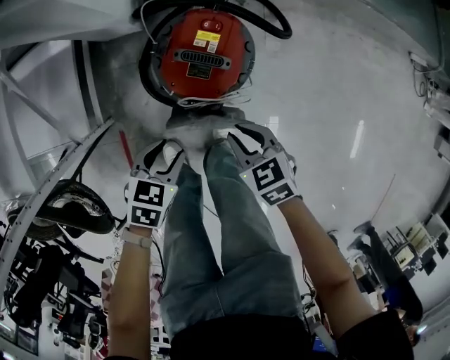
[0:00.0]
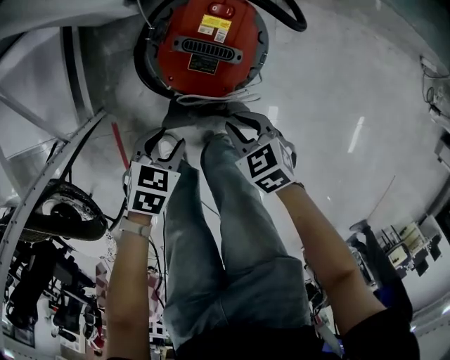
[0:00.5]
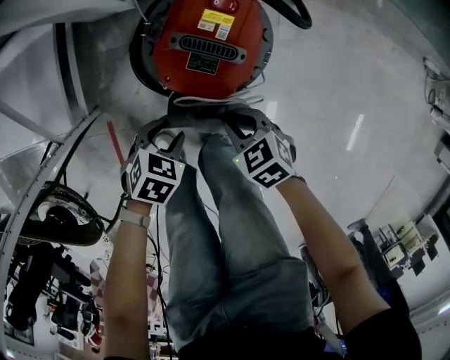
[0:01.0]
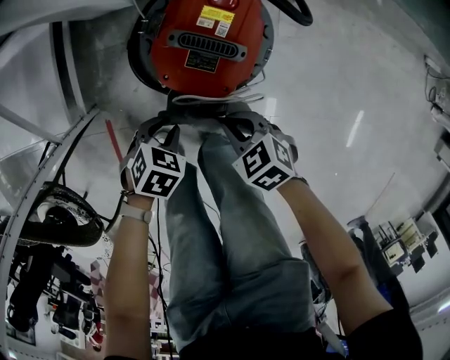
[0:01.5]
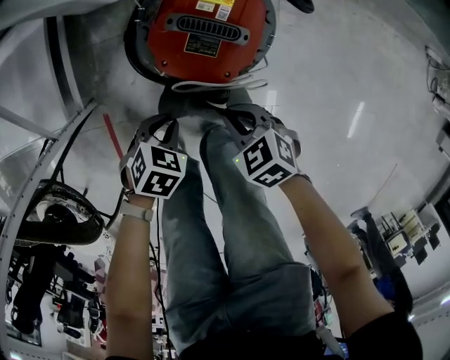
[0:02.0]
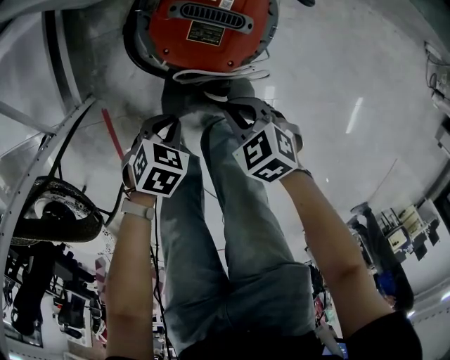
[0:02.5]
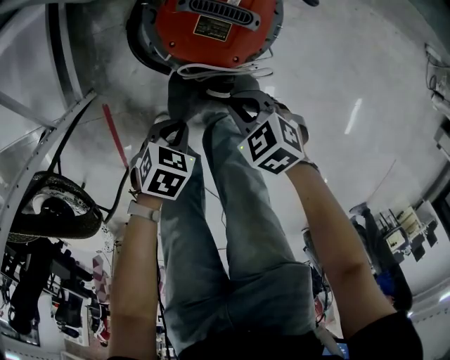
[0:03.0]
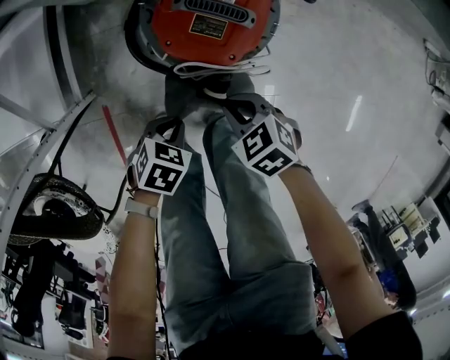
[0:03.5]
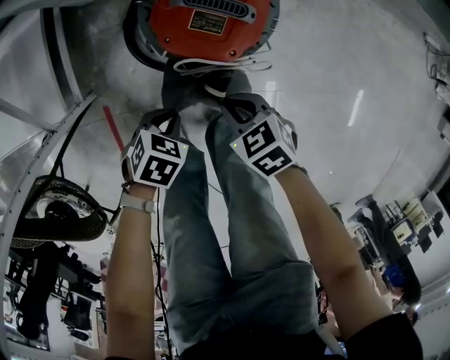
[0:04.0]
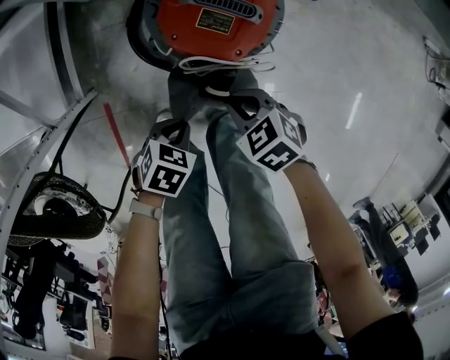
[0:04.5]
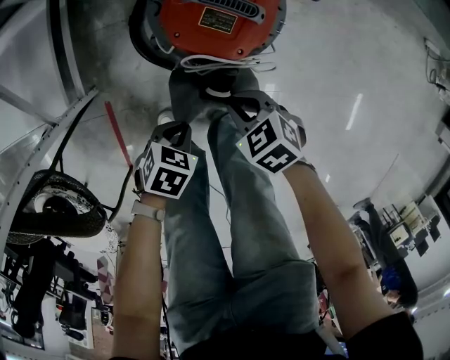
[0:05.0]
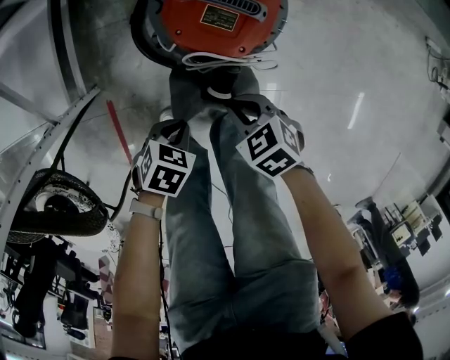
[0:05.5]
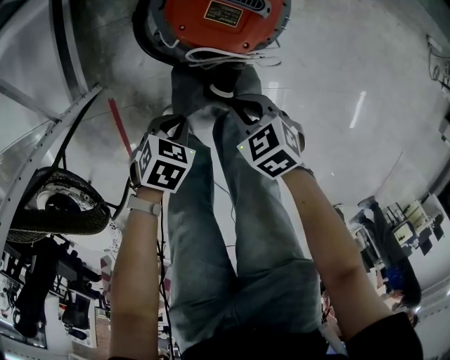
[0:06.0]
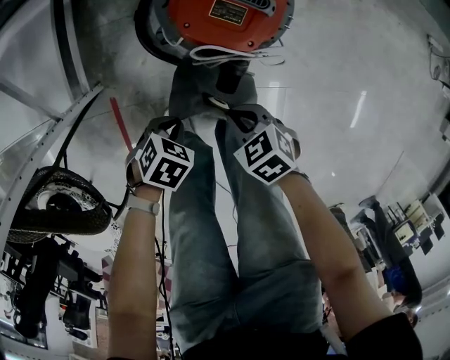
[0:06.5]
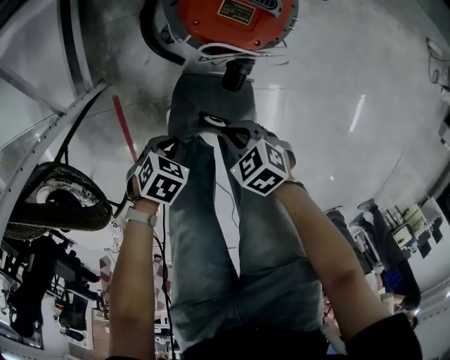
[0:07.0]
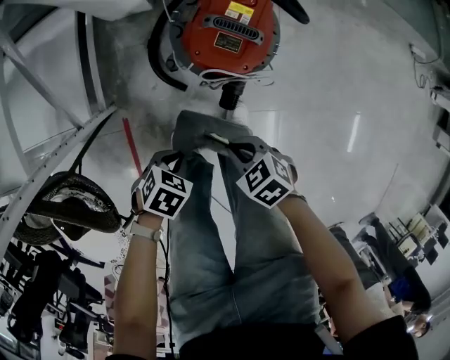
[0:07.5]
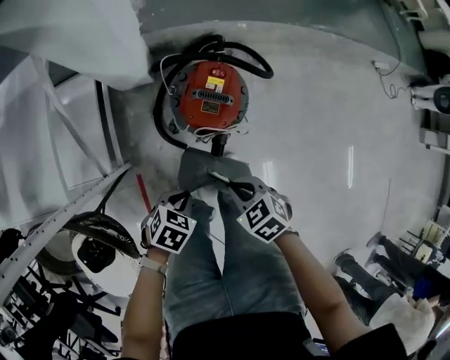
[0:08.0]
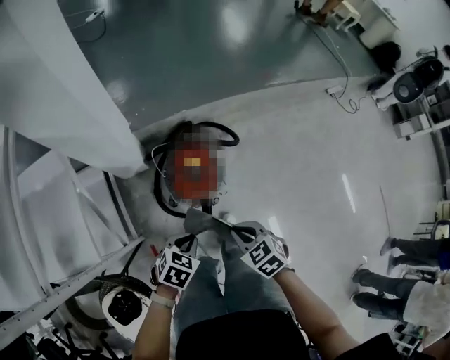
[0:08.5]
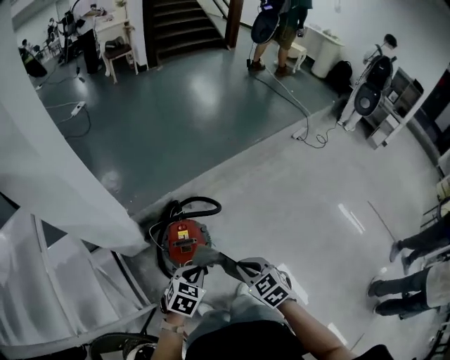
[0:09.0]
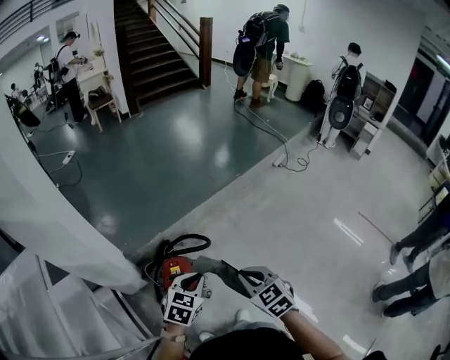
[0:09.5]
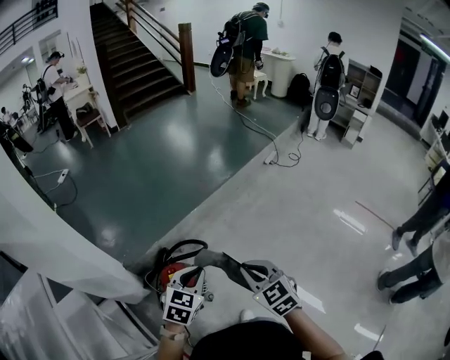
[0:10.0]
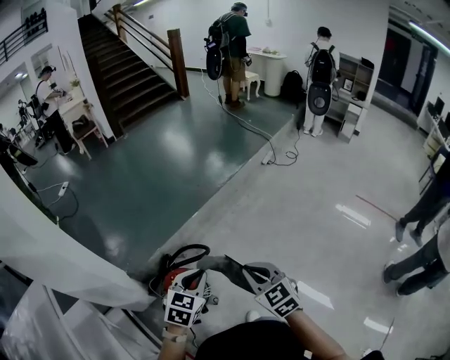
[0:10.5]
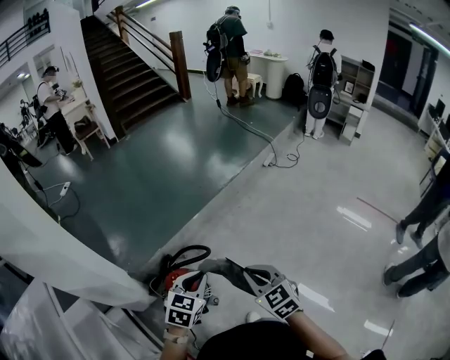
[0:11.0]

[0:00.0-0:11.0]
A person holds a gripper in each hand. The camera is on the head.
0:00.0 to 0:02.0: The grippers both shift downward by approximately 15 cm. The left gripper closes its fingers.
0:02.0 to 0:03.5: The left gripper shifts by approximately 5 cm.
0:03.5 to 0:05.5: The grippers stay close to where they were, moving slightly.
0:05.5 to 0:07.5: The right gripper moves roughly 10 cm; the left gripper goes some 5 cm upward.
0:07.5 to 0:09.0: The two grippers go roughly 50 cm upward. The right gripper turns by approximately 50 degrees, while the left gripper rotates some 40 degrees.
0:09.0 to 0:11.0: The two grippers go about 25 cm upward and to the right. The left gripper swivels approximately 20 degrees. Meanwhile the right gripper turns by roughly 30 degrees.

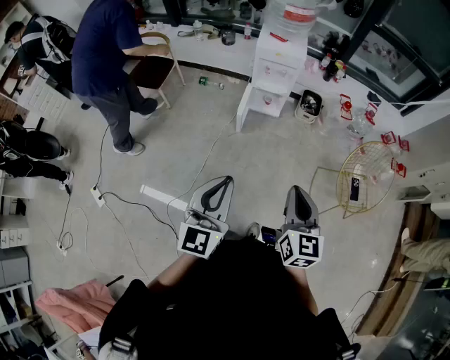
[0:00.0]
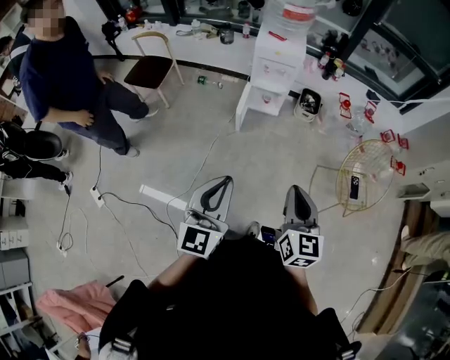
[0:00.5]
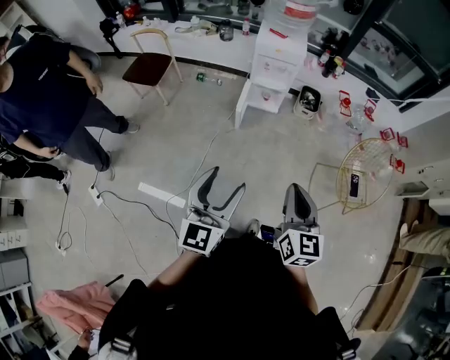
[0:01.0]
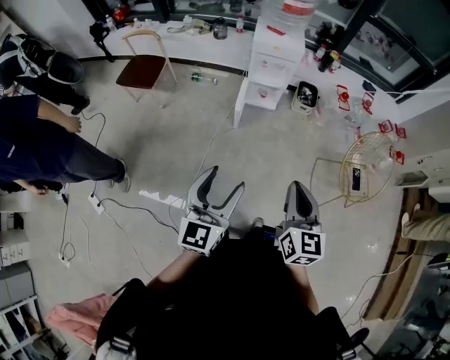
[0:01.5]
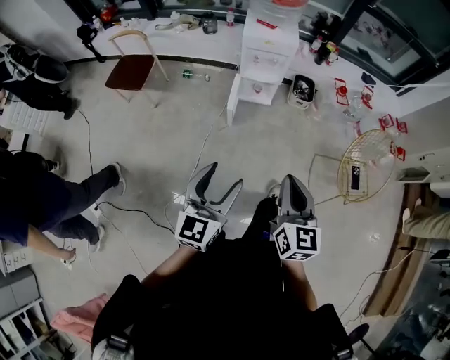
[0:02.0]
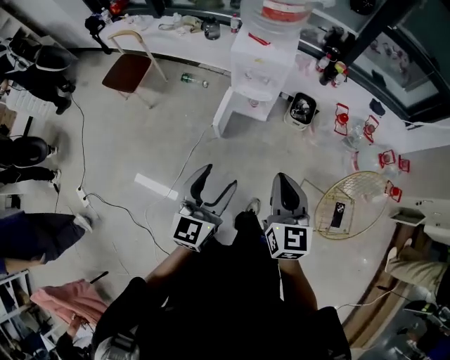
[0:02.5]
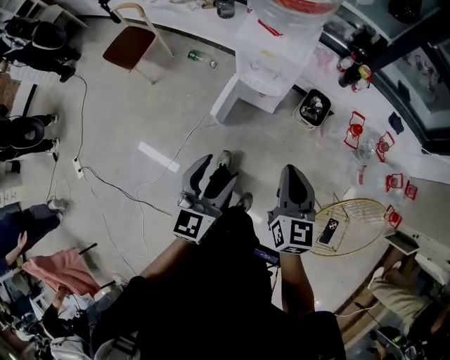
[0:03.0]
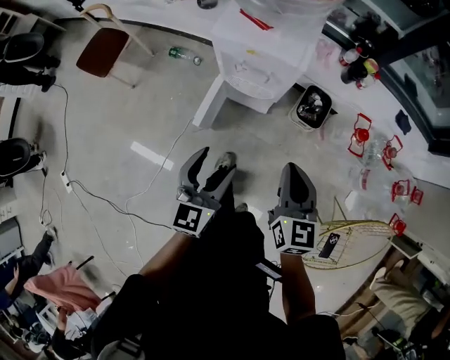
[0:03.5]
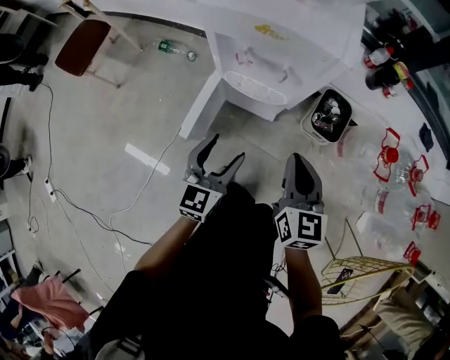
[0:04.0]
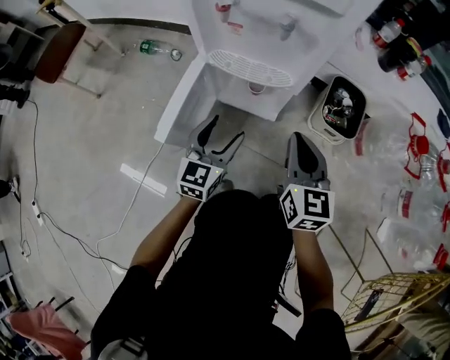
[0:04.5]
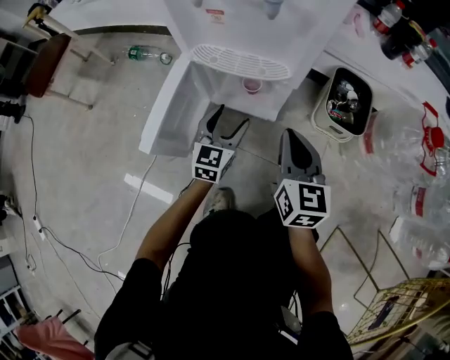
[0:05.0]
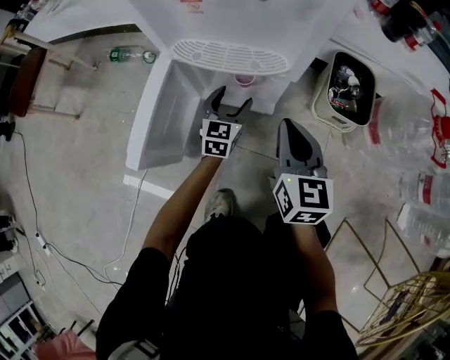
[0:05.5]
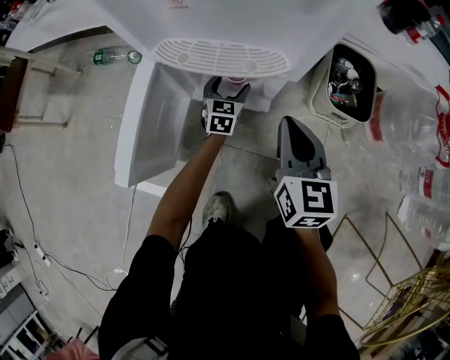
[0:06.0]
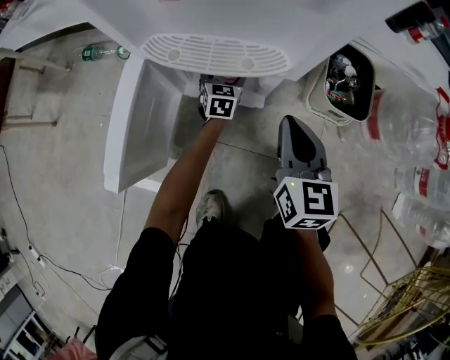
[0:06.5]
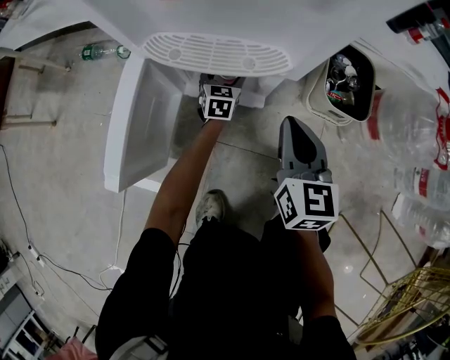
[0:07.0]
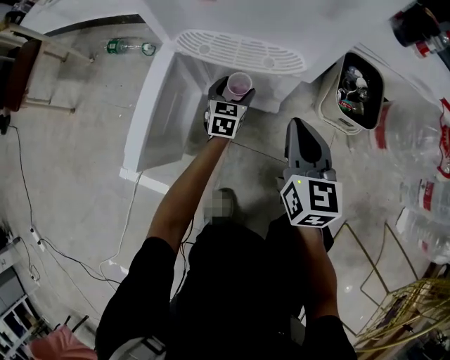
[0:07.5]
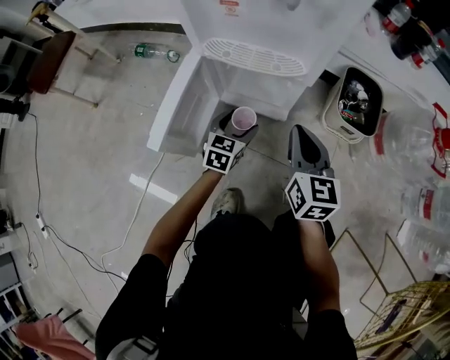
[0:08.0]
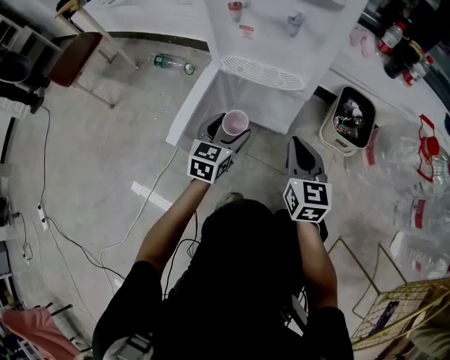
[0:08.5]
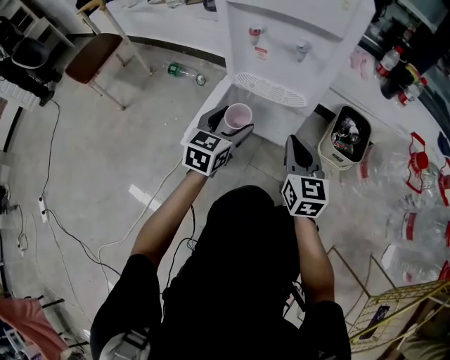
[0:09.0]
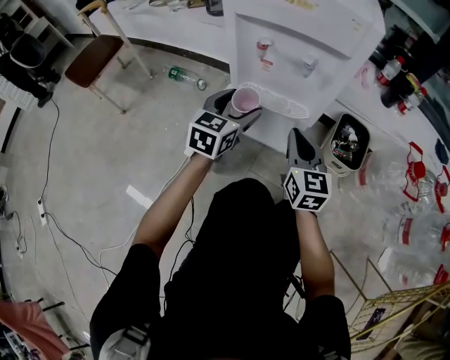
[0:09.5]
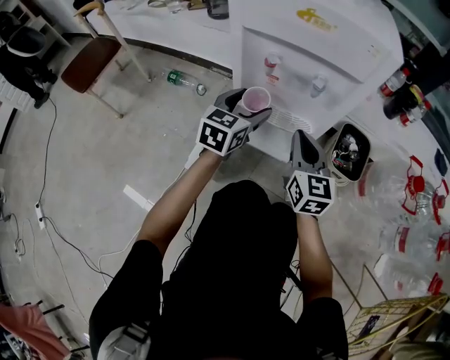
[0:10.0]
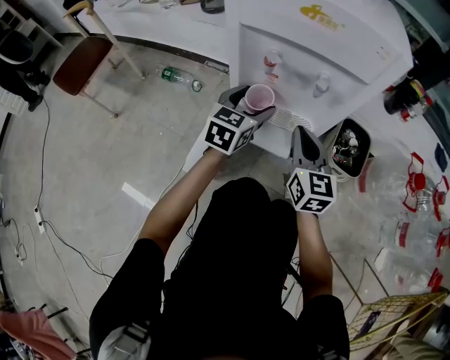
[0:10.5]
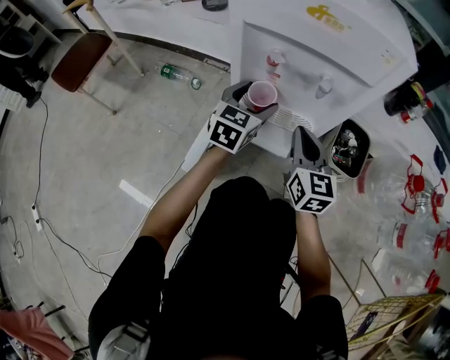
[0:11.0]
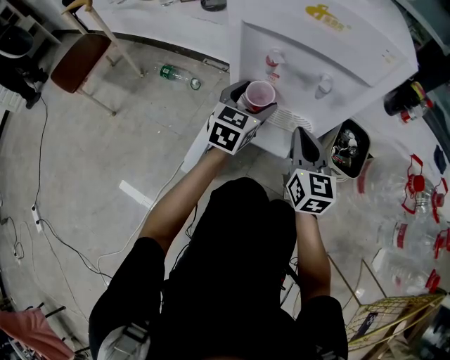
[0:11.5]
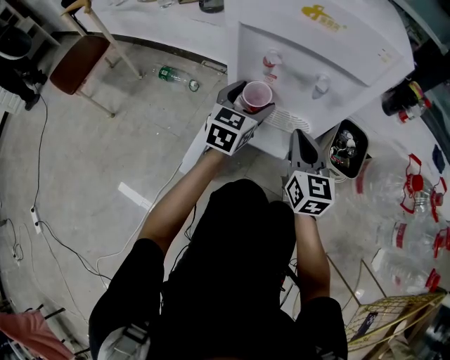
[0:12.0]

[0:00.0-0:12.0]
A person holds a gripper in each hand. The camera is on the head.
0:00.0 to 0:02.0: The left gripper is displaced forward and downward by roughly 10 cm, and opens up. The right gripper moves forward, approximately 10 cm.
0:02.0 to 0:04.0: Both grippers are carried forward, roughly 60 cm. Both grippers move downward, about 50 cm.
0:04.0 to 0:06.0: The right gripper heads downward, covering roughly 30 cm. The left gripper travels downward and forward by roughly 50 cm.
0:06.0 to 0:08.0: The left gripper travels backward and upward by about 15 cm.
0:08.0 to 0:10.0: The left gripper shifts approximately 30 cm upward; the right gripper shifts approximately 15 cm upward, to the left and forward.
0:10.0 to 0:12.0: The grippers stay close to where they were, moving slightly.

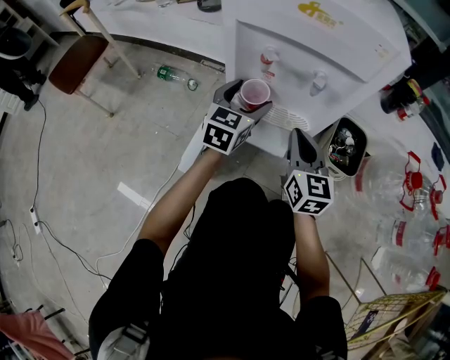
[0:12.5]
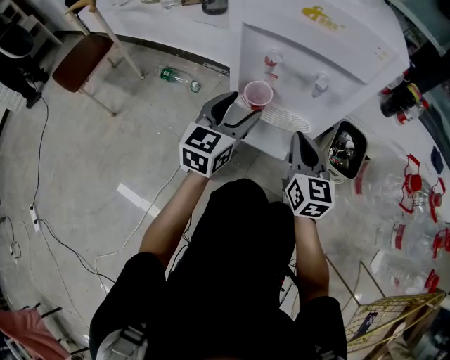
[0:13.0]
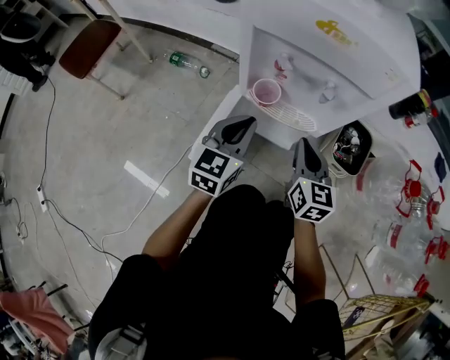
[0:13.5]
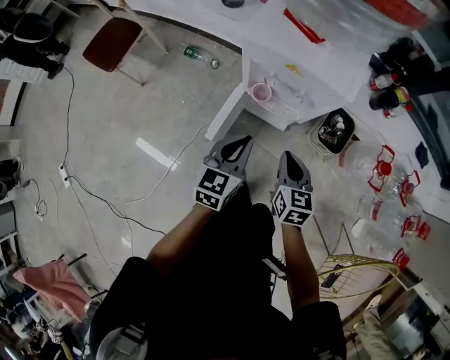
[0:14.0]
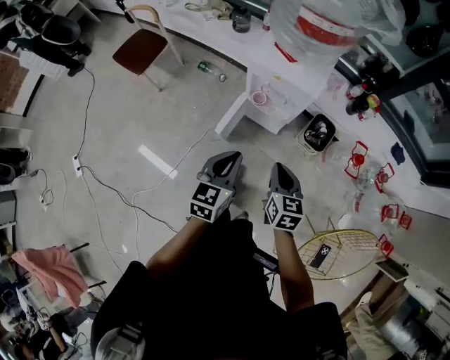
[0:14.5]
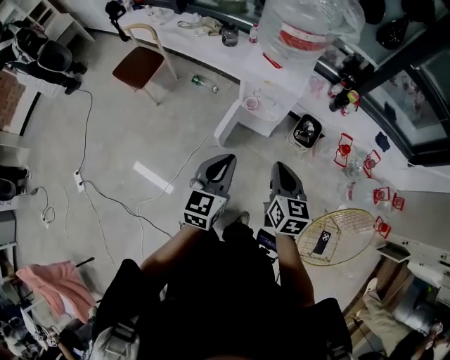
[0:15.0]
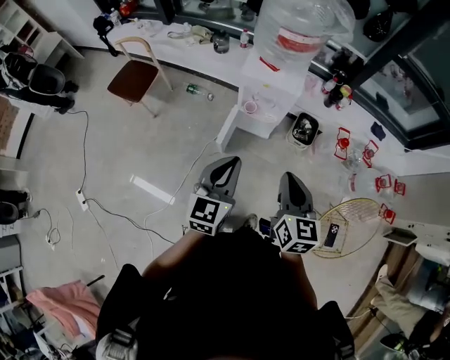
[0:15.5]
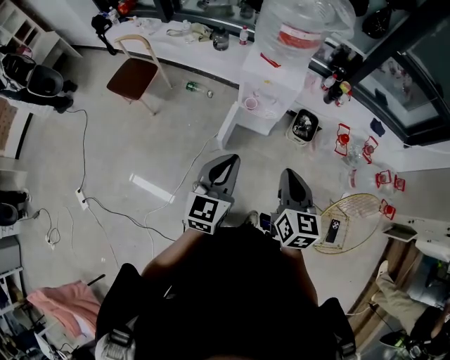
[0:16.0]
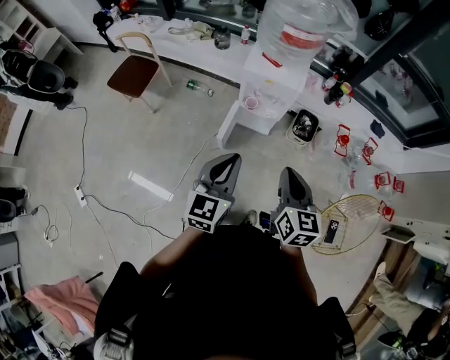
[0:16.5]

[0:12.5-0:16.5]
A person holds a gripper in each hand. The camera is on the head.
0:12.5 to 0:14.5: The grippers both shift upward and backward by some 50 cm. The right gripper turns by approximately 20 degrees; the left gripper closes up.
0:14.5 to 0:16.5: Both grippers move upward and backward, about 20 cm.
